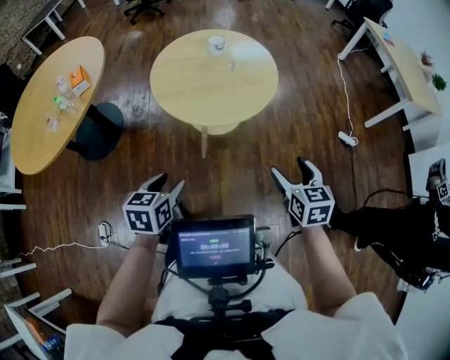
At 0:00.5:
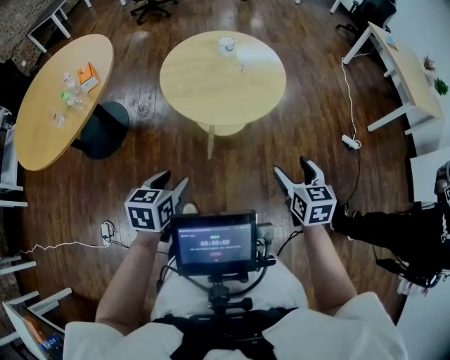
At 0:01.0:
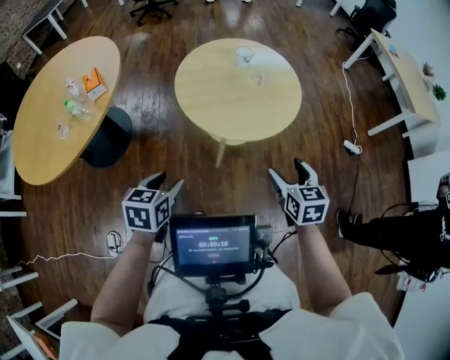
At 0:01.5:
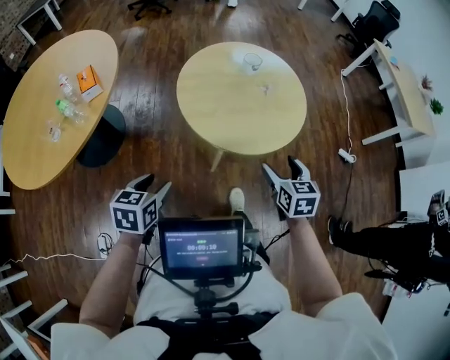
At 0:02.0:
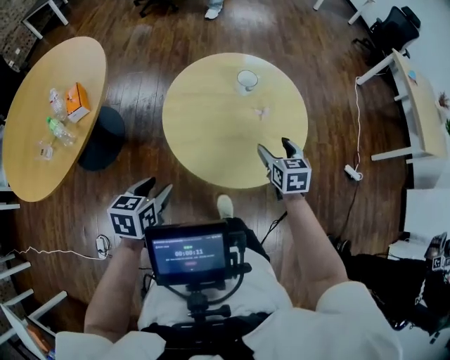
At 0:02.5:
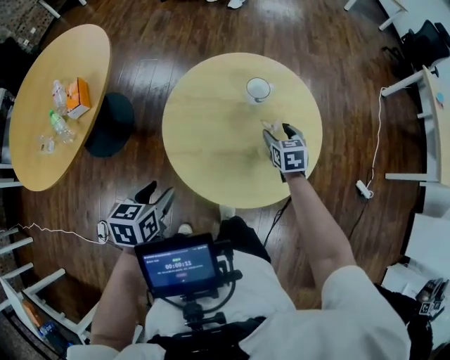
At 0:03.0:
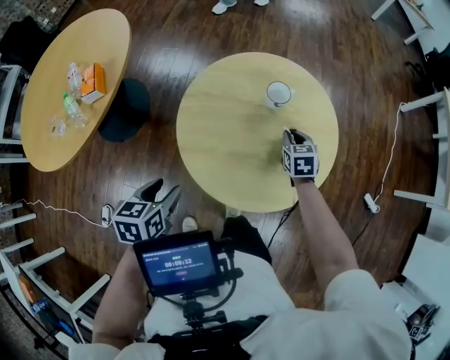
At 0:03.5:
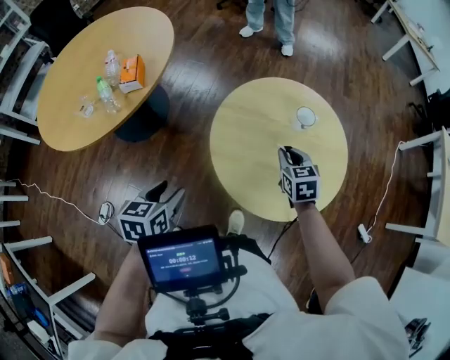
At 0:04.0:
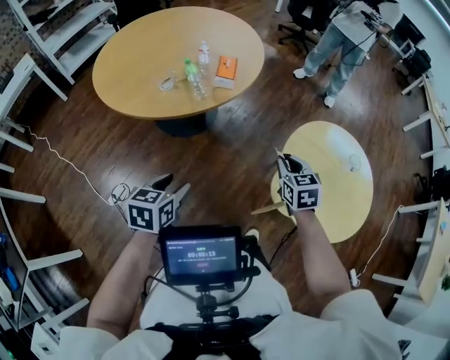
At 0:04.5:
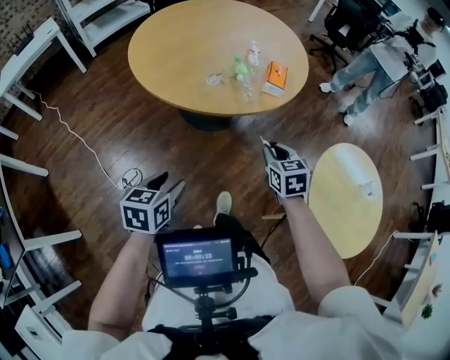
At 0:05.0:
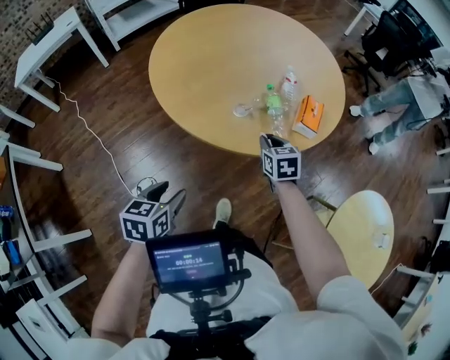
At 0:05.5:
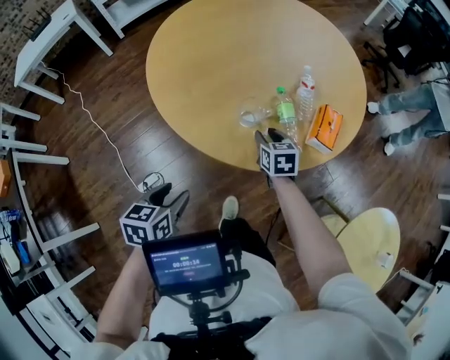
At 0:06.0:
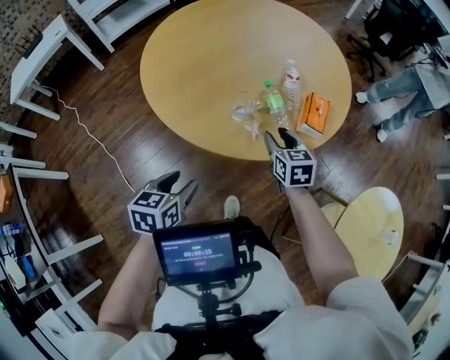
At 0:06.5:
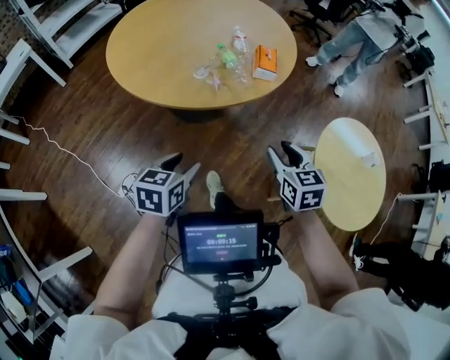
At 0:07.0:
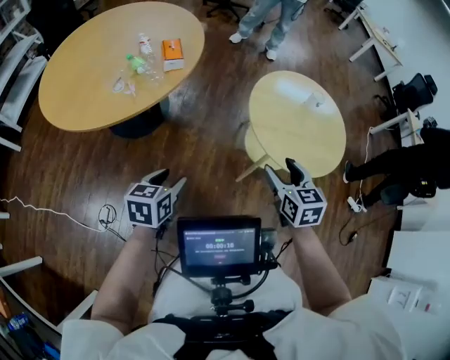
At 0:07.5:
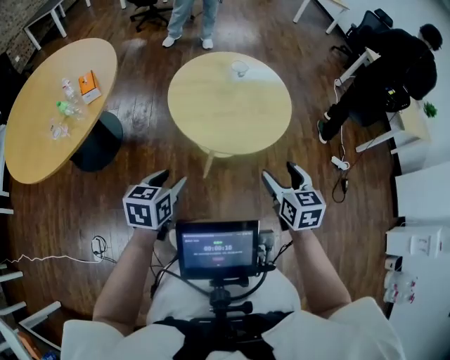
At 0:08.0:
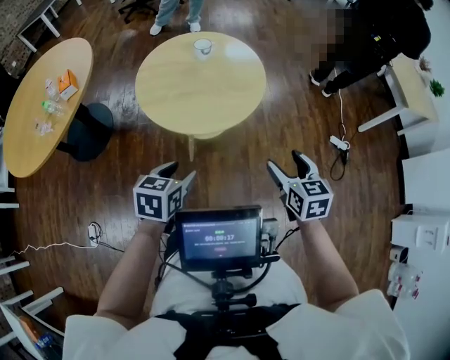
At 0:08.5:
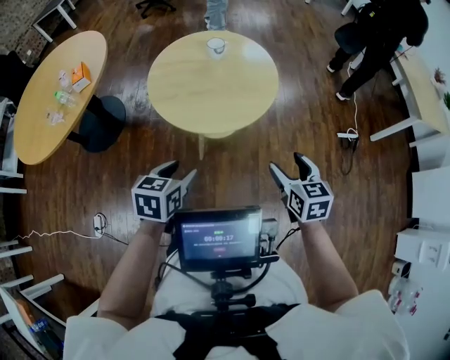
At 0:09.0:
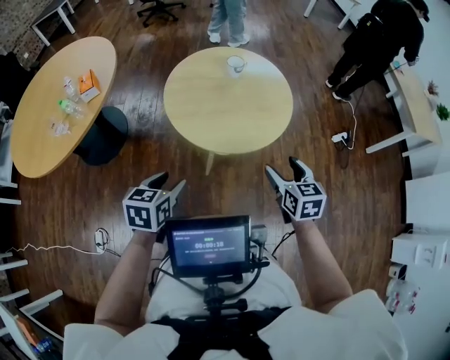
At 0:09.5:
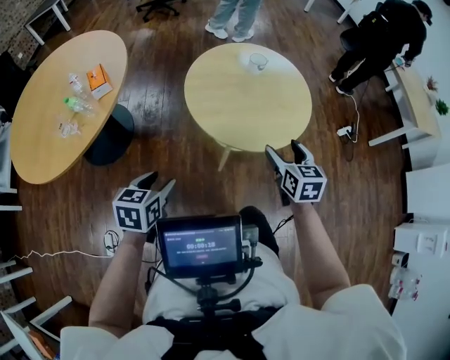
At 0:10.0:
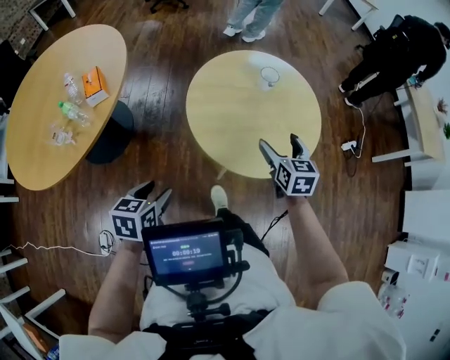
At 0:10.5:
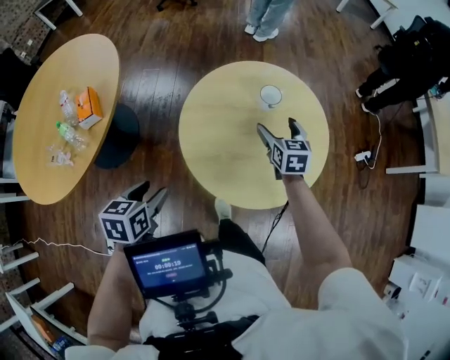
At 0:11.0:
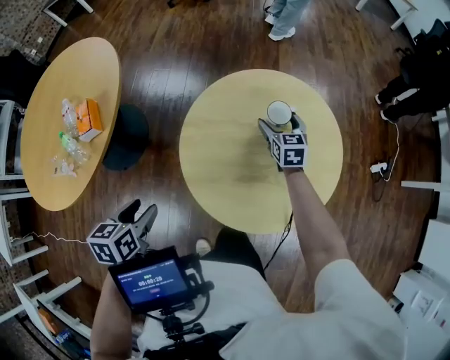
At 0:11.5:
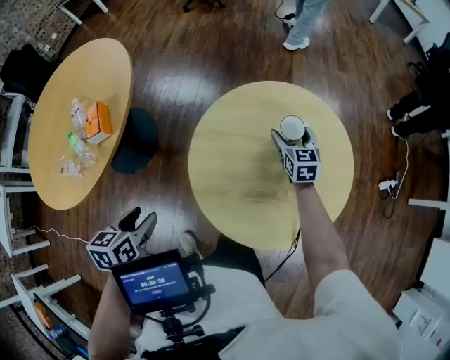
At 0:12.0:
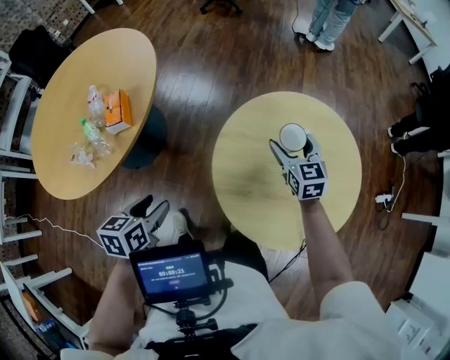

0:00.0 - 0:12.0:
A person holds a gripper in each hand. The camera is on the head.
0:00.0 - 0:02.0: Both grippers move forward and to the left, roughly 30 cm.
0:02.0 - 0:04.0: The left gripper ends up roughly 30 cm from where it was, and swivels approximately 30 degrees; the right gripper changes place by approximately 40 cm, turns by roughly 40 degrees, and closes.
0:04.0 - 0:06.0: The grippers both shift to the left and forward by roughly 35 cm.
0:06.0 - 0:08.0: The two grippers travel together, about 80 cm. The left gripper changes its angle by roughly 50 degrees. The right gripper turns by roughly 50 degrees, and opens its fingers.
0:08.0 - 0:10.0: The right gripper shifts approximately 35 cm to the left and forward. Meanwhile the left gripper travels to the left by some 30 cm.
0:10.0 - 0:12.0: The left gripper shifts roughly 15 cm forward and to the left; the right gripper moves forward, approximately 25 cm, and turns by approximately 20 degrees.

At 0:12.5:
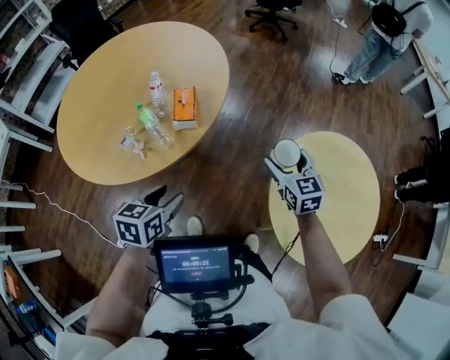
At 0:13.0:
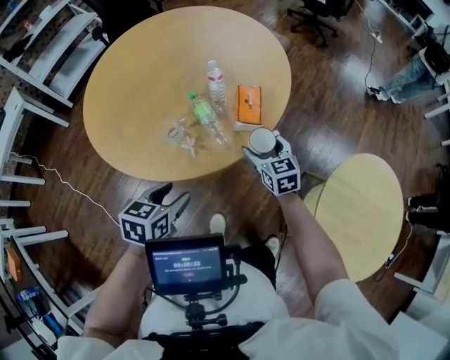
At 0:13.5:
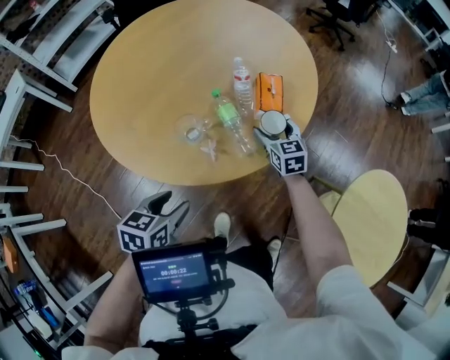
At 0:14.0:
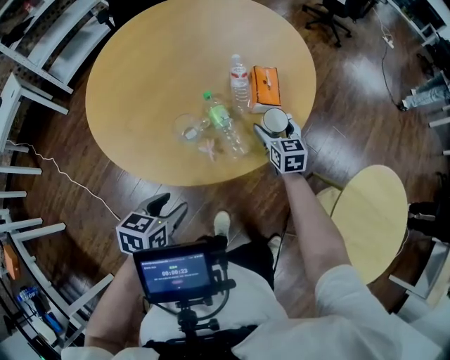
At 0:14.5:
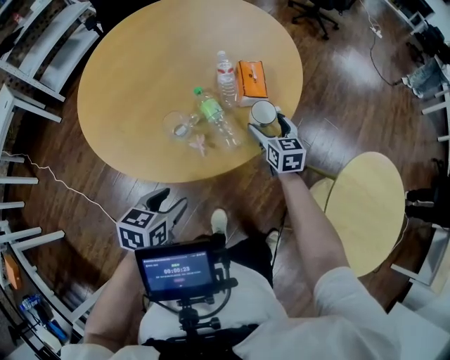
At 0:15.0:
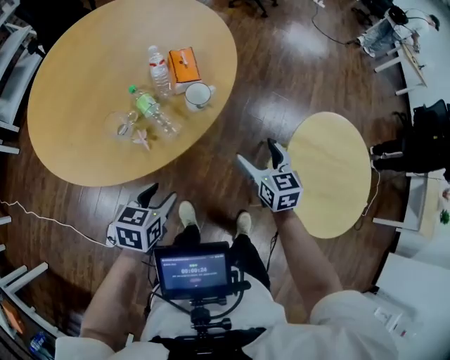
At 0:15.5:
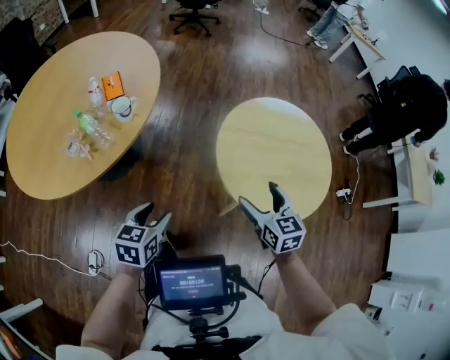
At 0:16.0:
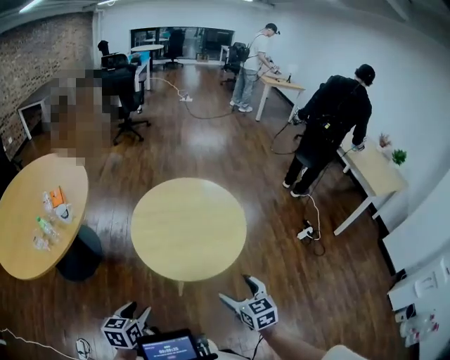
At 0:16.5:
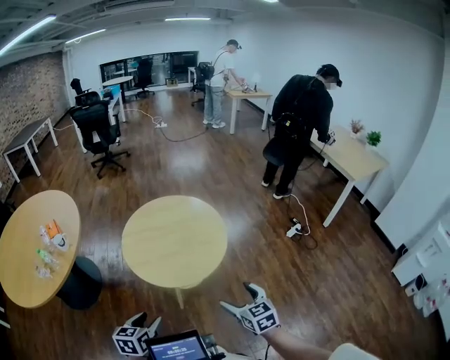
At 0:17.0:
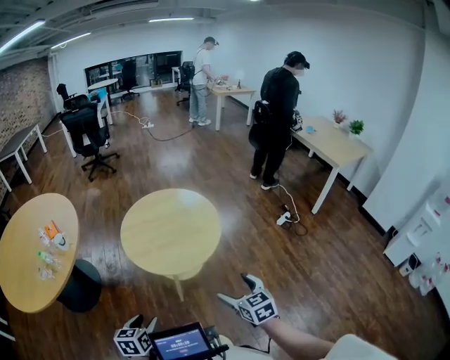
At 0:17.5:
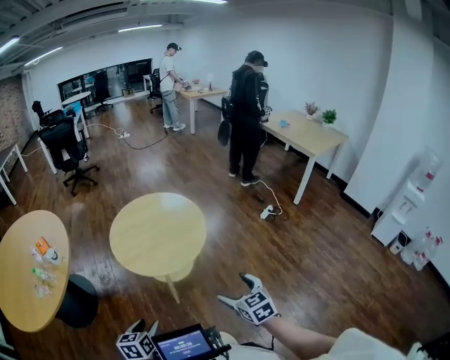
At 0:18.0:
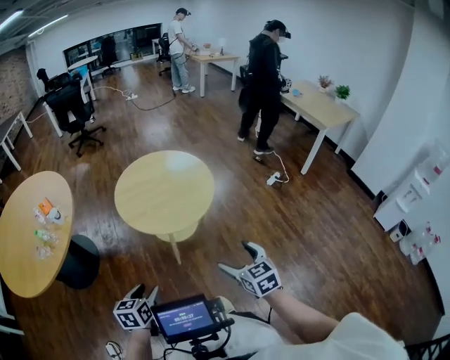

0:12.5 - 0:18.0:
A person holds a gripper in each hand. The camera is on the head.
0:12.5 - 0:14.5: The left gripper shifts some 20 cm to the left. The right gripper heads to the left and forward, covering roughly 30 cm.
0:14.5 - 0:16.0: The pair of grippers is taken to the right and backward, approximately 70 cm. The right gripper rotates some 30 degrees. The left gripper turns by roughly 20 degrees.
0:16.0 - 0:18.0: The right gripper goes roughly 20 cm backward. The left gripper heads backward, covering some 10 cm.

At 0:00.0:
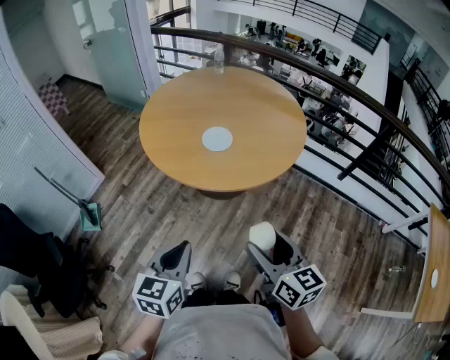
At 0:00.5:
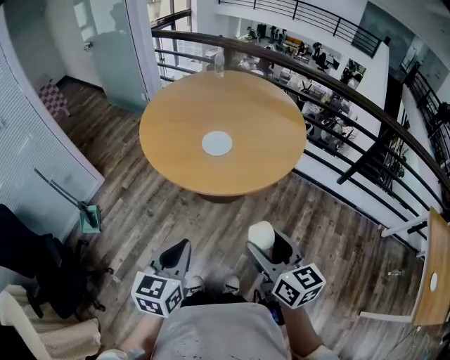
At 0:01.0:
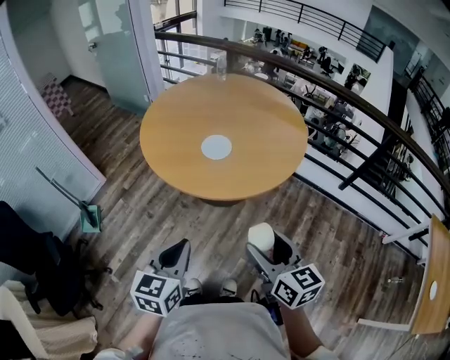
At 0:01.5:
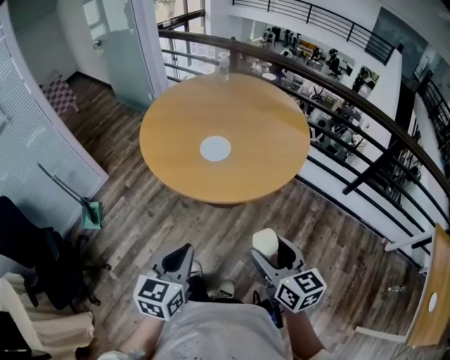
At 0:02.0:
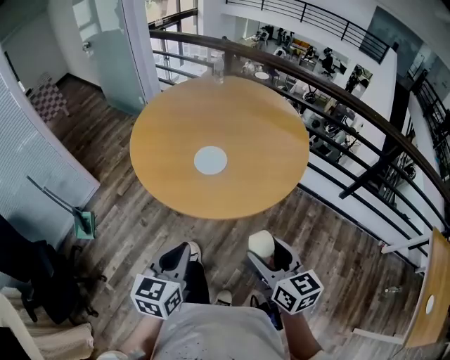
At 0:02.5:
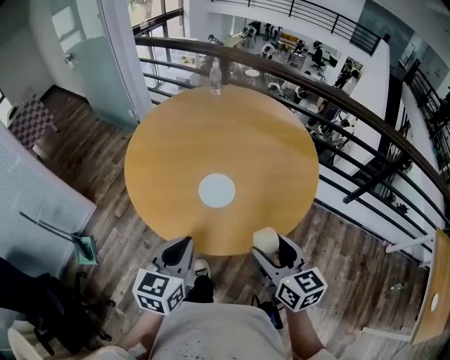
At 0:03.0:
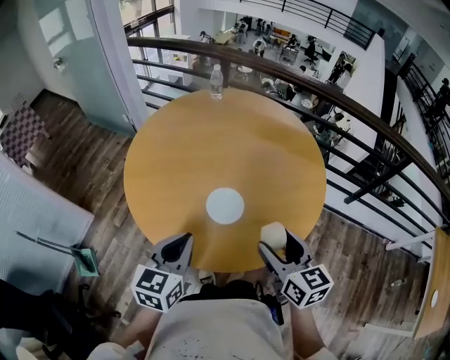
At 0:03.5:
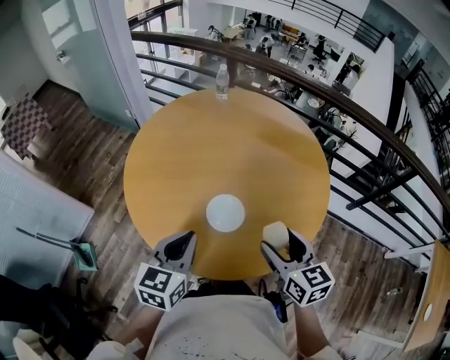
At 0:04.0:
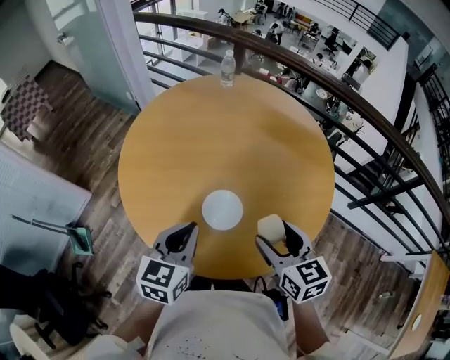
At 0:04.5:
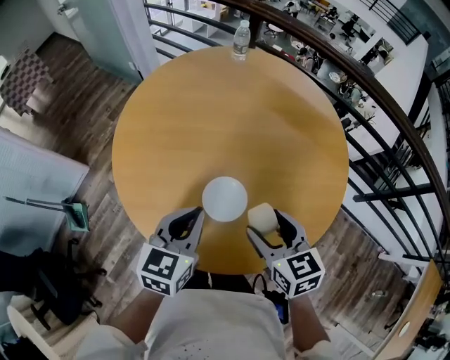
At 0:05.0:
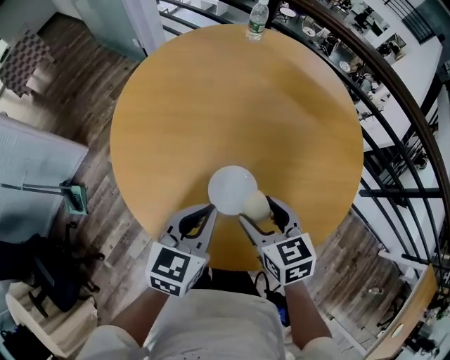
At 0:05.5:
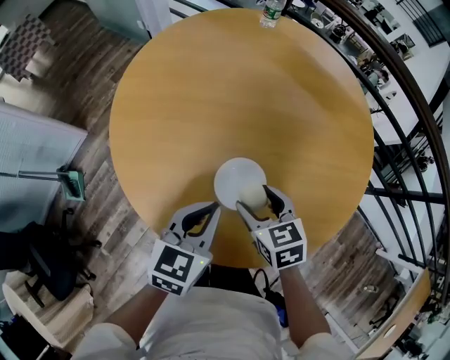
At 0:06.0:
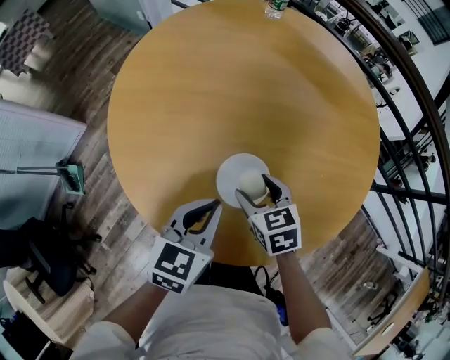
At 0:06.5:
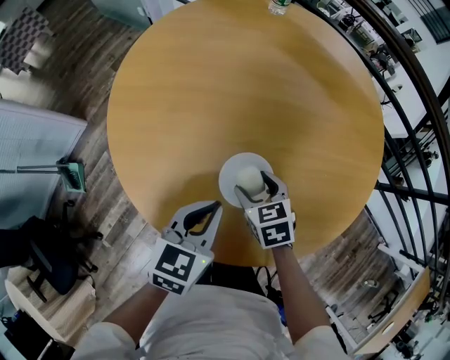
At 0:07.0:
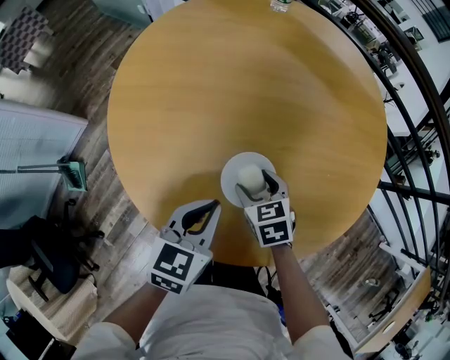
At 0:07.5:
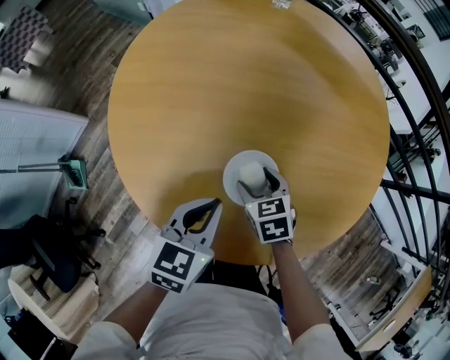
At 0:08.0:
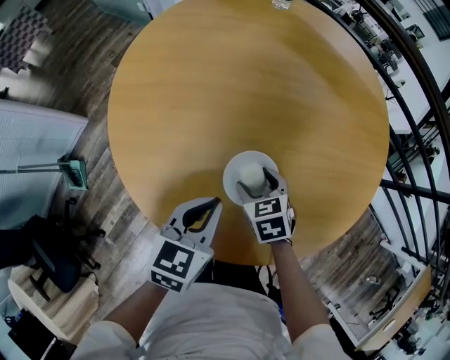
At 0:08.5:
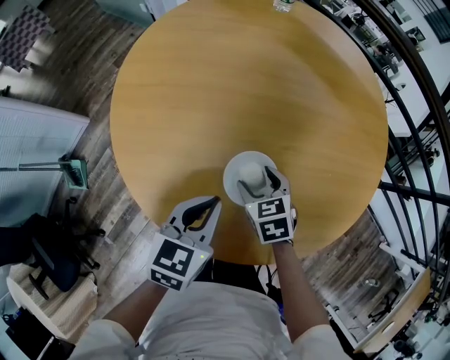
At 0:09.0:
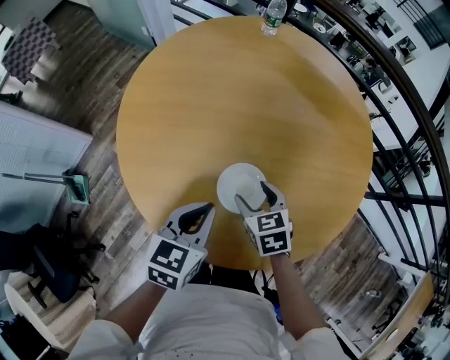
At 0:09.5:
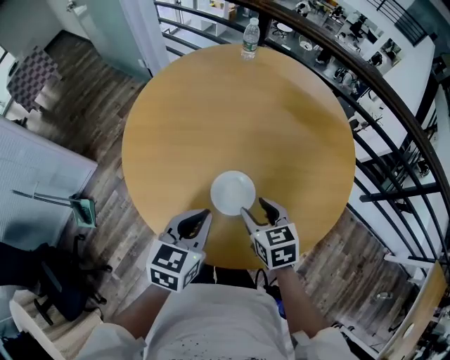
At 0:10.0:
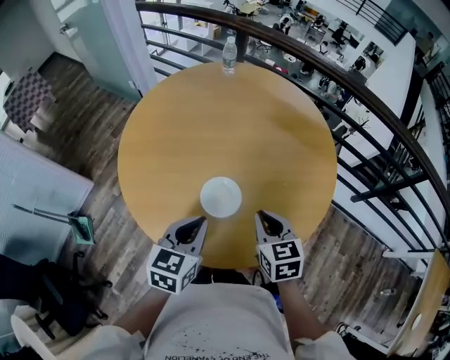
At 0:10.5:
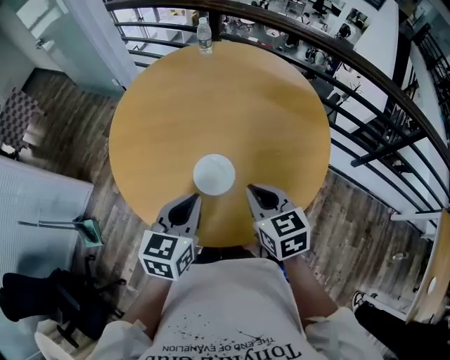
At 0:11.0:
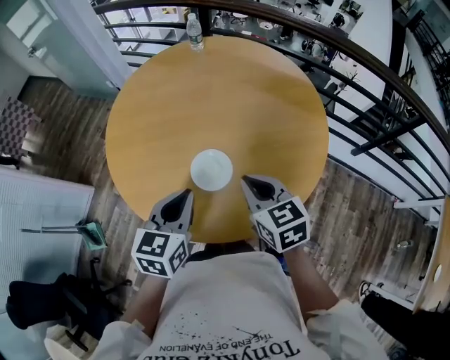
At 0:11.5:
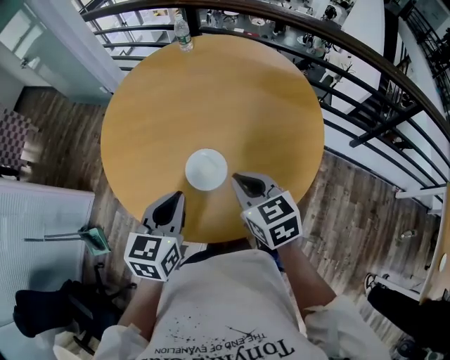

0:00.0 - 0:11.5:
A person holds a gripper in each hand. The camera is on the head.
0:00.0 - 0:02.0: Both grippers move forward, approximately 10 cm.
0:02.0 - 0:04.0: The grippers both shift forward by about 35 cm.
0:04.0 - 0:06.0: The right gripper is displaced downward, forward and to the left by roughly 25 cm, and rotates roughly 30 degrees. Meanwhile the left gripper shifts some 10 cm downward.
0:06.0 - 0:07.5: The right gripper heads downward, covering roughly 5 cm.
0:07.5 - 0:09.5: The left gripper heads upward, covering roughly 10 cm. Meanwhile the right gripper heads upward, covering about 15 cm.
0:09.5 - 0:11.5: The right gripper shifts about 10 cm upward, and closes. The left gripper is displaced upward by some 5 cm.
